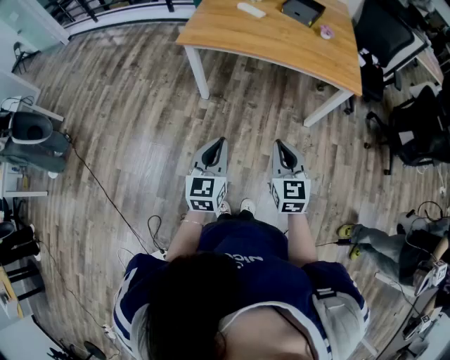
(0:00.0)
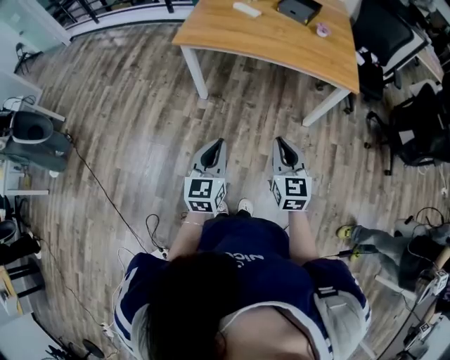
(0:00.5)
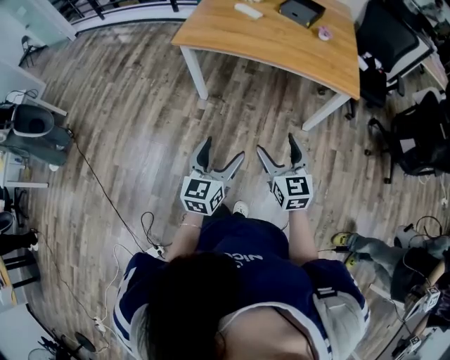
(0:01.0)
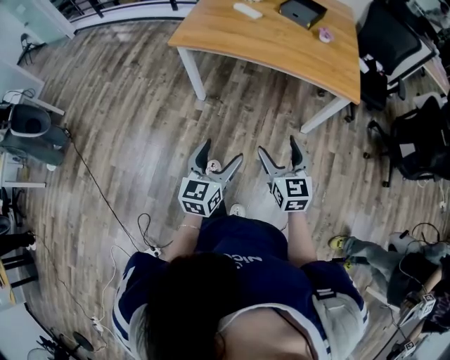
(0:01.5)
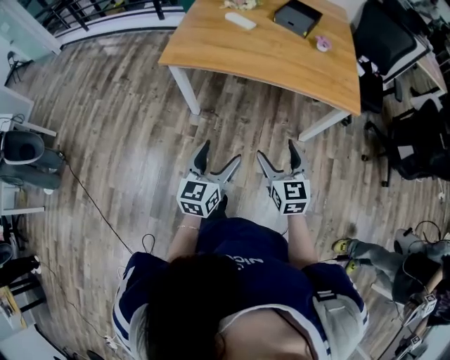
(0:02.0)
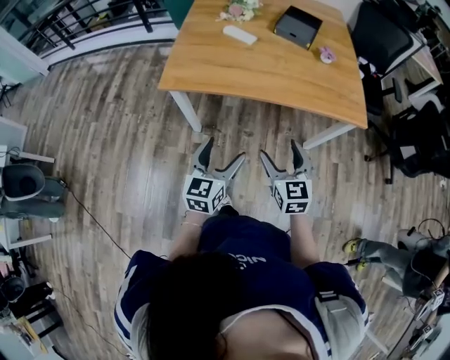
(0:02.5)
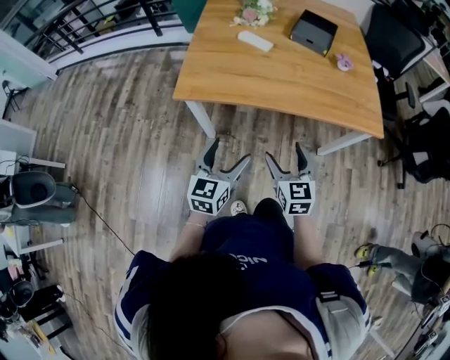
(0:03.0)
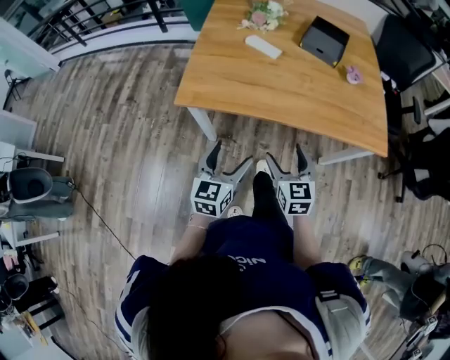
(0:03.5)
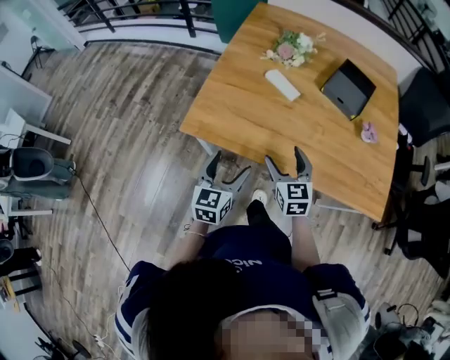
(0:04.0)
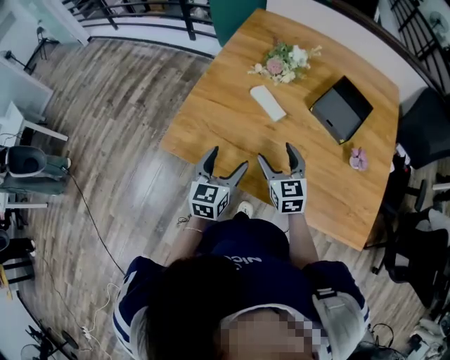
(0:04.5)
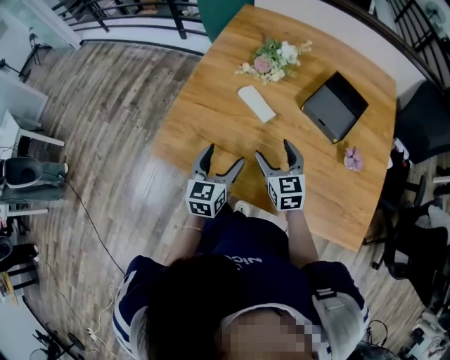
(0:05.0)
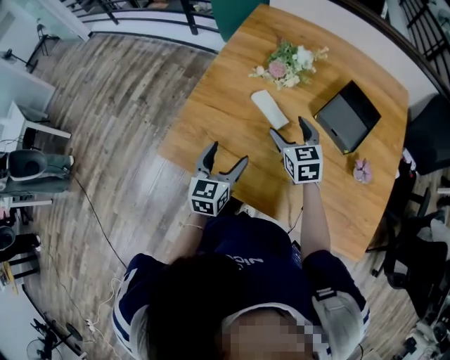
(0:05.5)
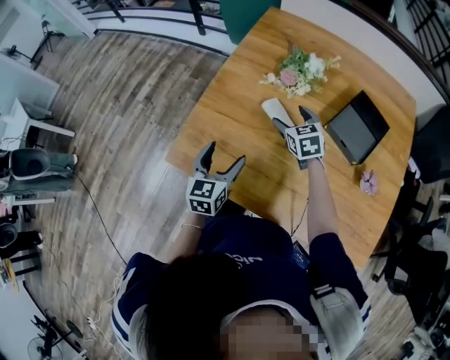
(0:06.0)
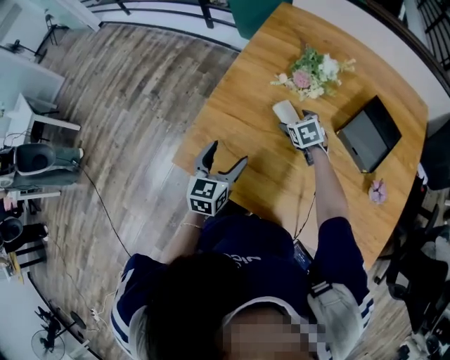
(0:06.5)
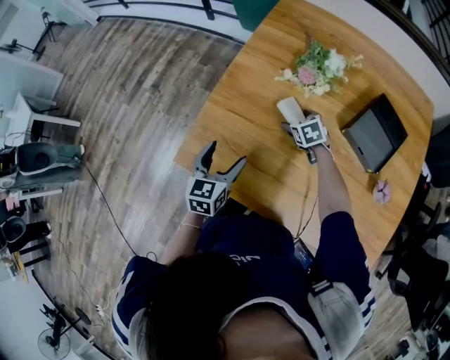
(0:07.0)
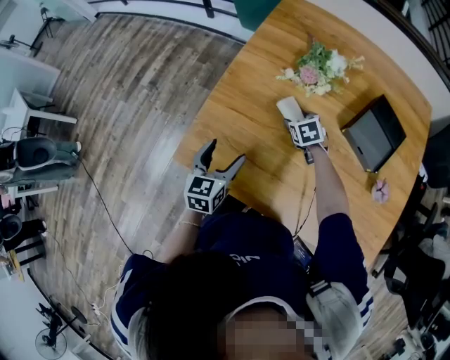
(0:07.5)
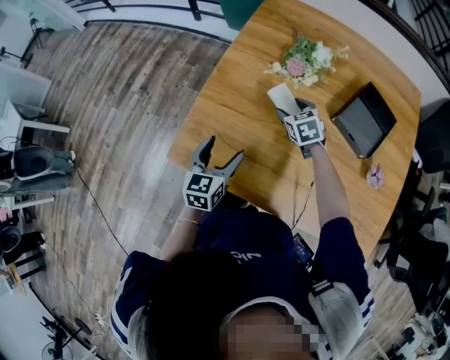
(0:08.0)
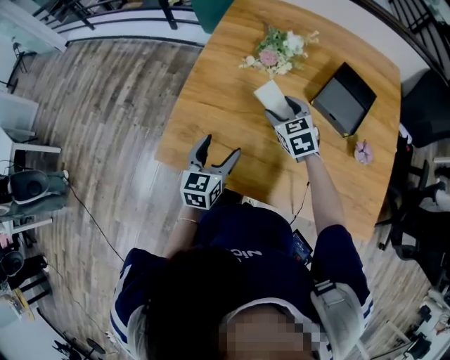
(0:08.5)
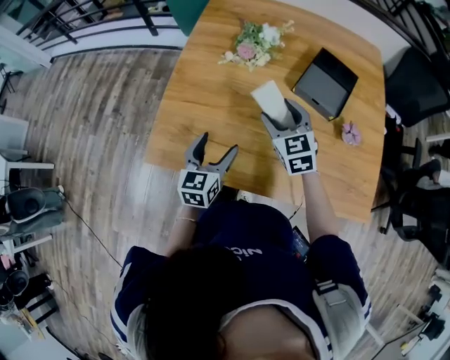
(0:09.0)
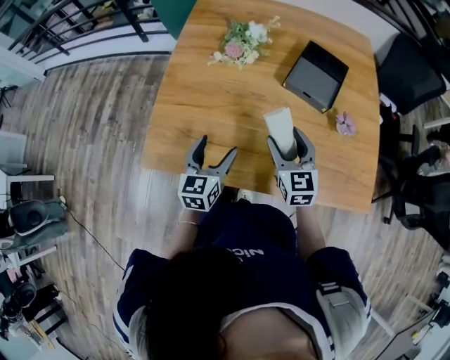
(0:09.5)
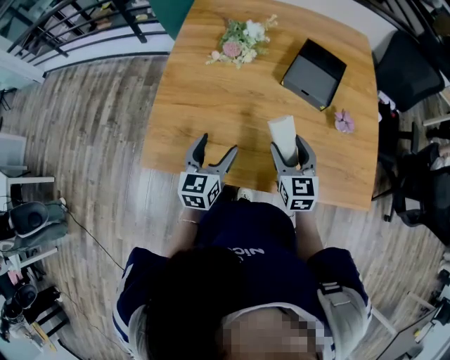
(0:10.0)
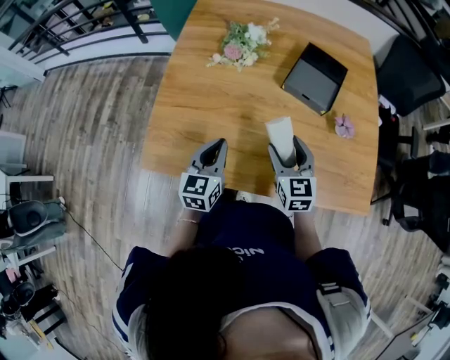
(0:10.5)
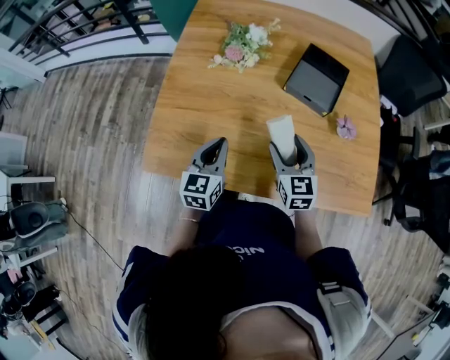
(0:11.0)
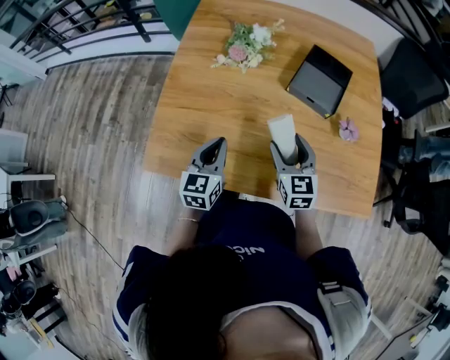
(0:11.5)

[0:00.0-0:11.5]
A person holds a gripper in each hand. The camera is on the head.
0:00.0 to 0:02.0: The right gripper moves forward, approximately 15 cm, and opens up. Meanwhile the left gripper moves forward and to the right, some 15 cm, and opens up.
0:02.0 to 0:04.0: The two grippers go about 35 cm forward.
0:04.0 to 0:06.0: The left gripper shifts about 20 cm forward. Meanwhile the right gripper travels forward by approximately 30 cm, and swivels some 20 degrees.
0:06.0 to 0:07.5: The right gripper goes some 10 cm downward, while the left gripper moves approximately 5 cm.
0:07.5 to 0:09.5: The left gripper goes roughly 15 cm to the right and backward. The right gripper travels backward, upward and to the right by roughly 30 cm, and tilts its fingers some 40 degrees upward.
0:09.5 to 0:11.5: The left gripper closes its fingers.

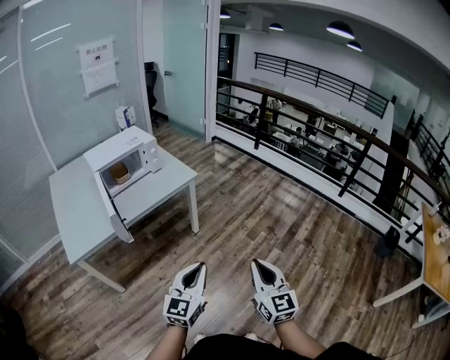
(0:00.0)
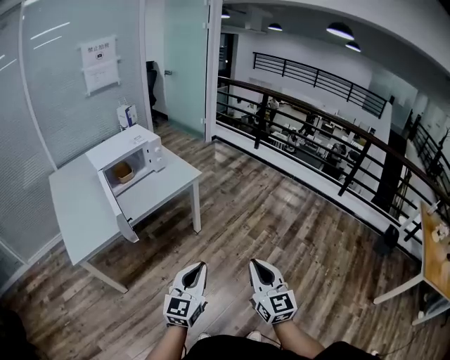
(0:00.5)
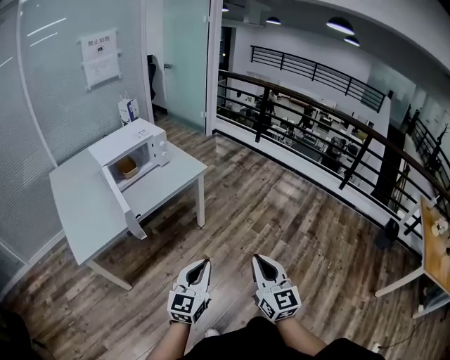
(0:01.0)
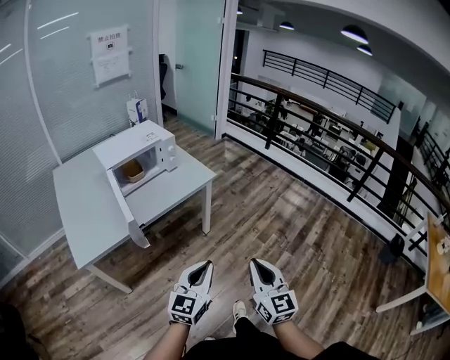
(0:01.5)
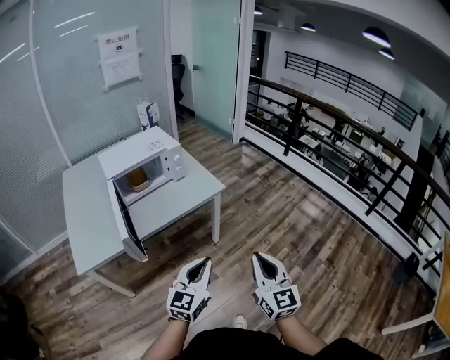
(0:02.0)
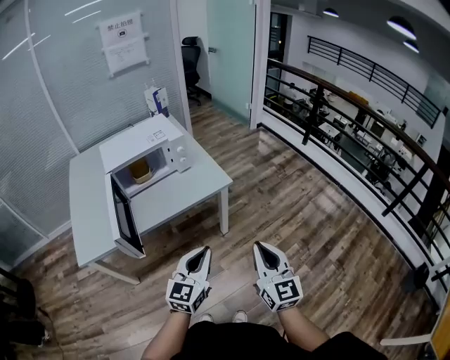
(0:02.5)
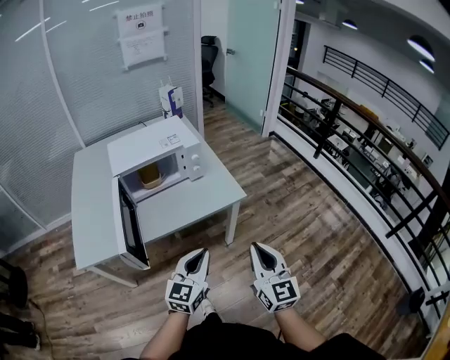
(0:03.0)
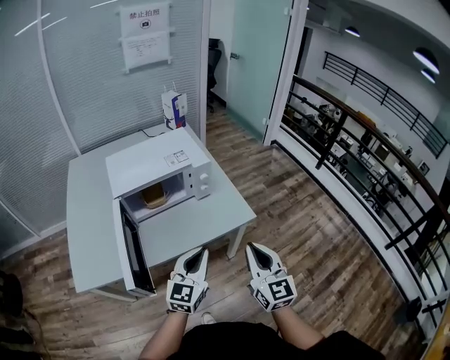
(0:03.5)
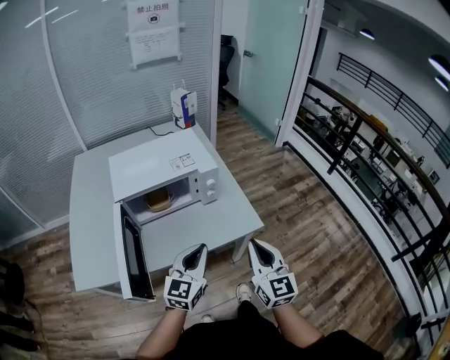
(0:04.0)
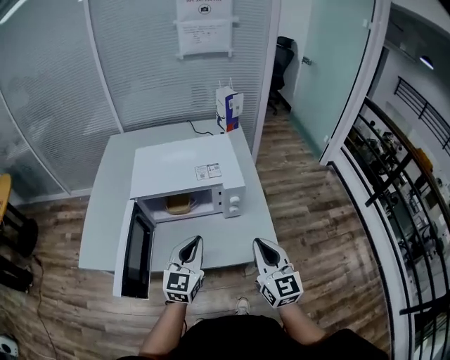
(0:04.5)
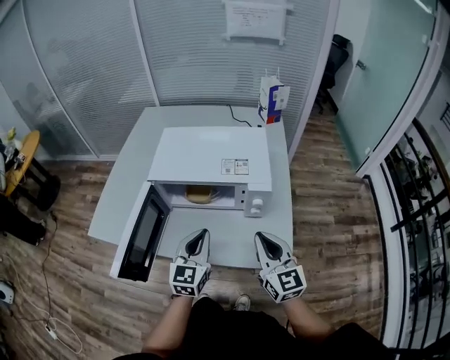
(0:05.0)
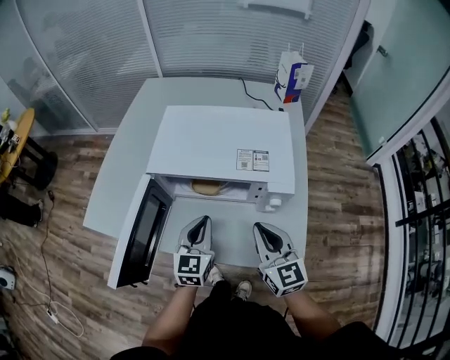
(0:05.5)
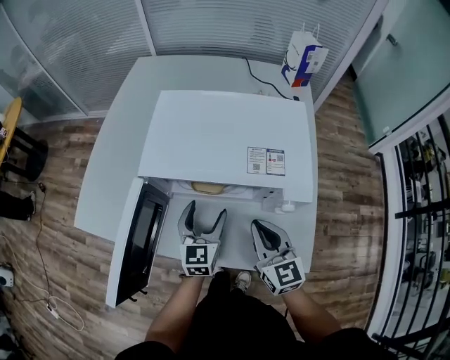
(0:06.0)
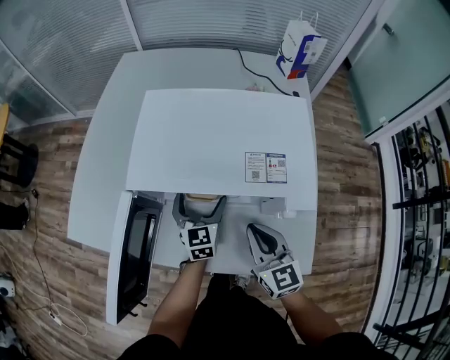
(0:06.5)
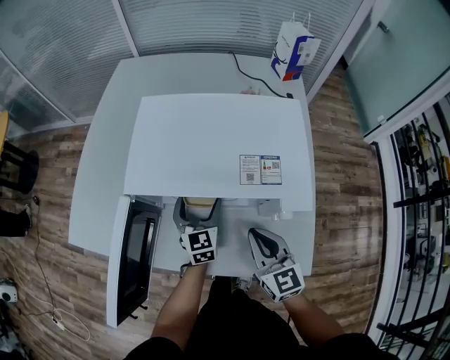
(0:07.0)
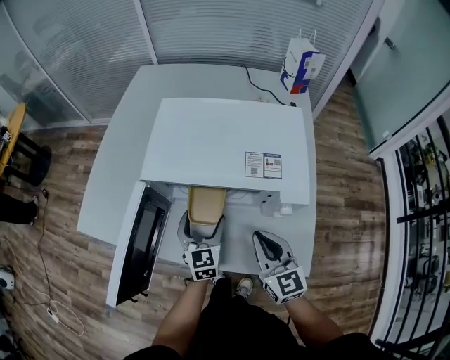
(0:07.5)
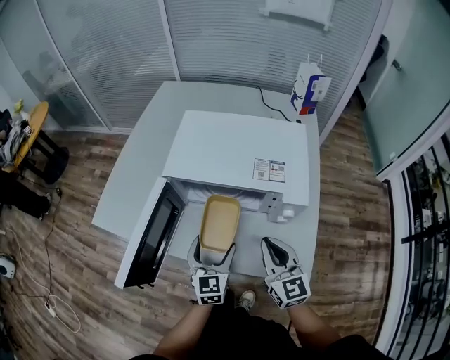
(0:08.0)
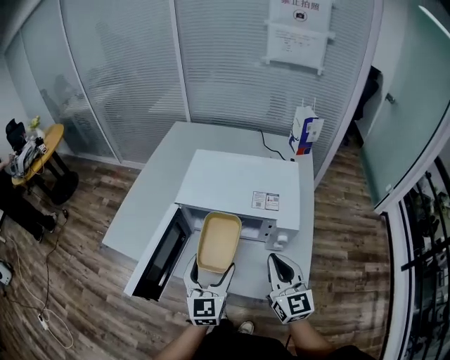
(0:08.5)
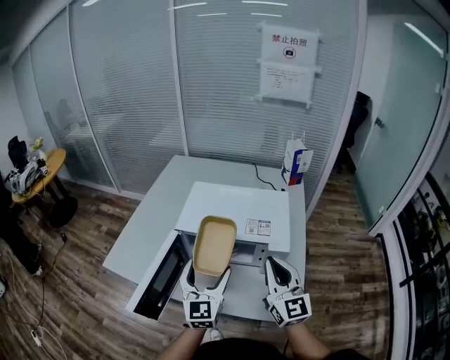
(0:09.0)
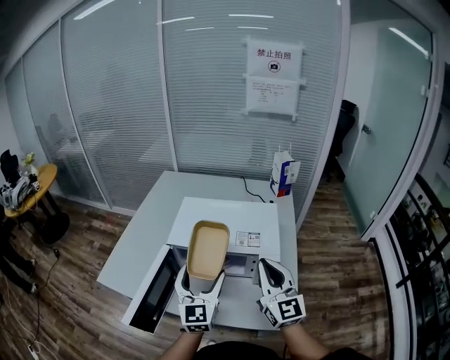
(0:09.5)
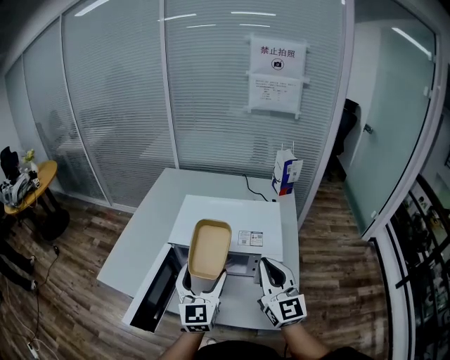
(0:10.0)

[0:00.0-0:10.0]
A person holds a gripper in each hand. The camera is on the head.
0:00.0 to 0:02.0: The two grippers go about 20 cm forward and to the left.
0:02.0 to 0:04.0: The grippers both shift forward by some 35 cm.
0:04.0 to 0:06.0: The left gripper moves approximately 30 cm, rotates roughly 50 degrees, and opens up; the right gripper changes place by about 30 cm, and swivels about 40 degrees.
0:06.0 to 0:08.0: The right gripper heads backward, covering roughly 5 cm. The left gripper travels backward by about 10 cm.
0:08.0 to 0:10.0: The two grippers go roughly 20 cm upward. The left gripper rotates some 20 degrees; the right gripper rotates some 20 degrees.

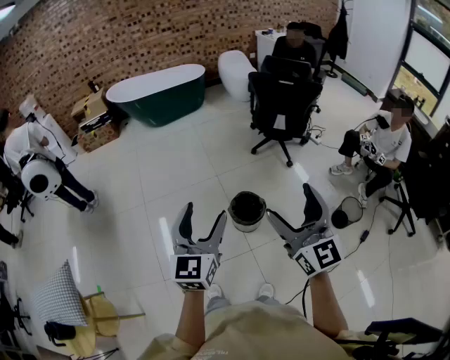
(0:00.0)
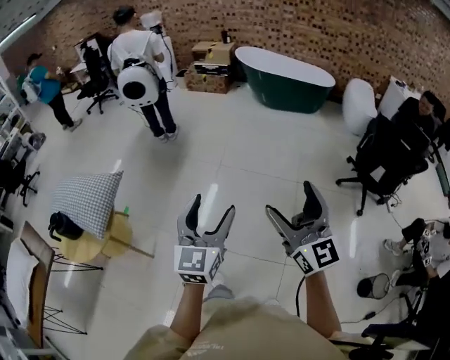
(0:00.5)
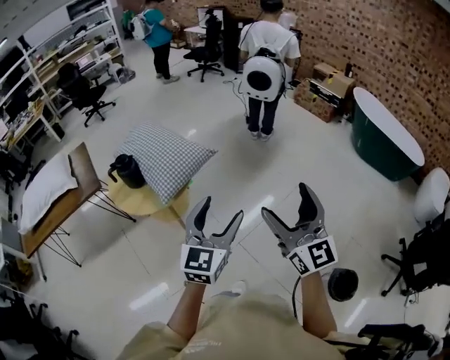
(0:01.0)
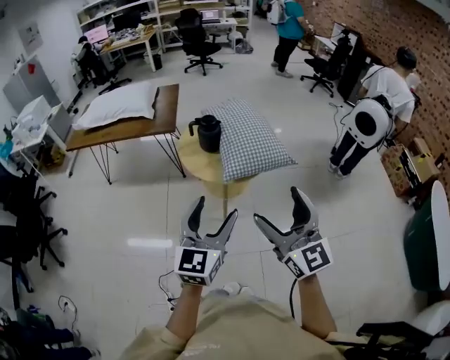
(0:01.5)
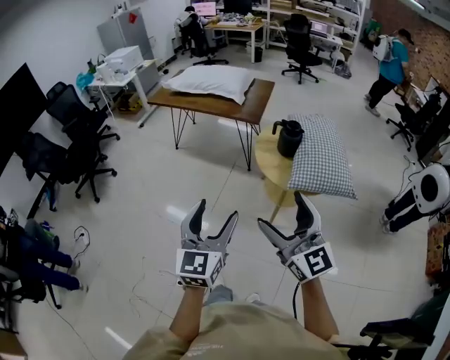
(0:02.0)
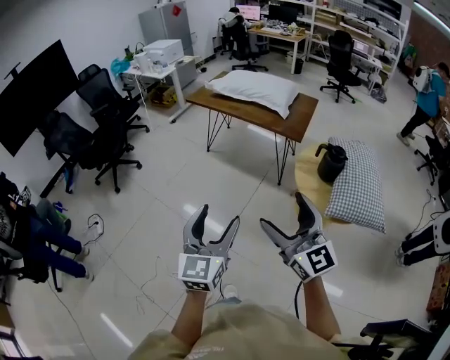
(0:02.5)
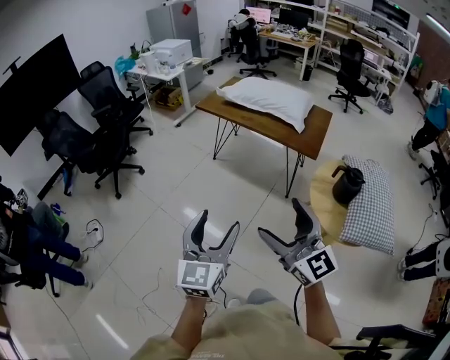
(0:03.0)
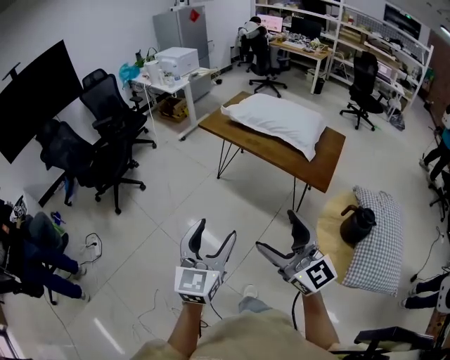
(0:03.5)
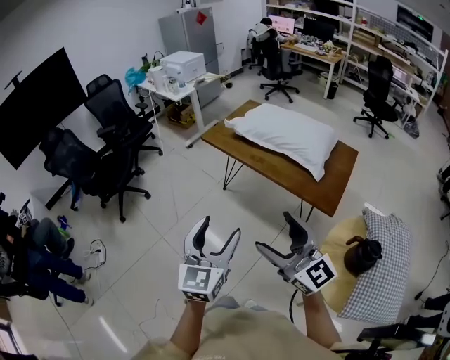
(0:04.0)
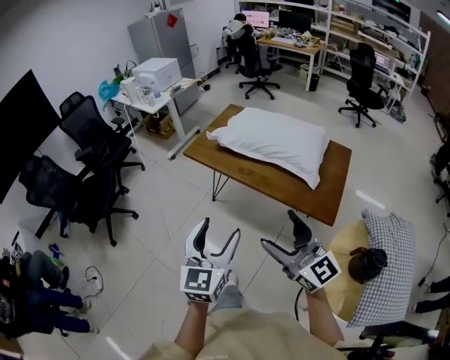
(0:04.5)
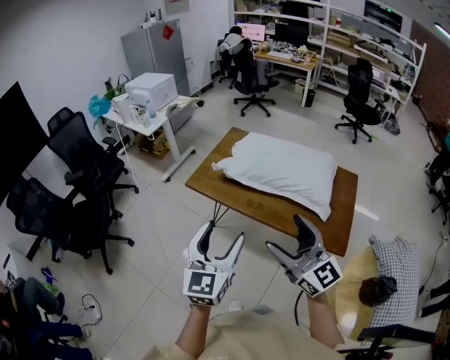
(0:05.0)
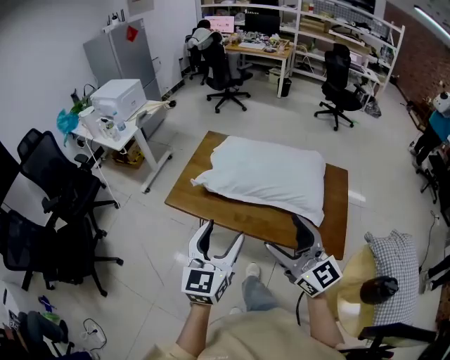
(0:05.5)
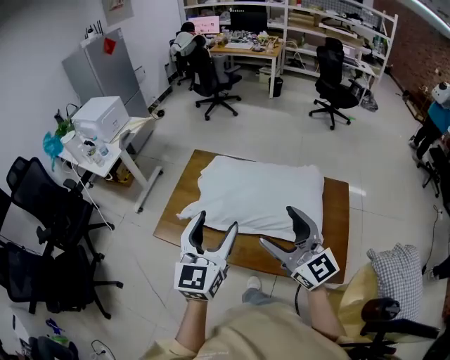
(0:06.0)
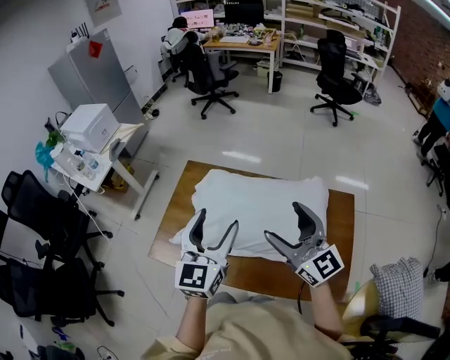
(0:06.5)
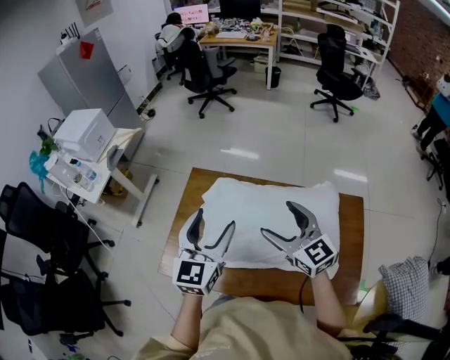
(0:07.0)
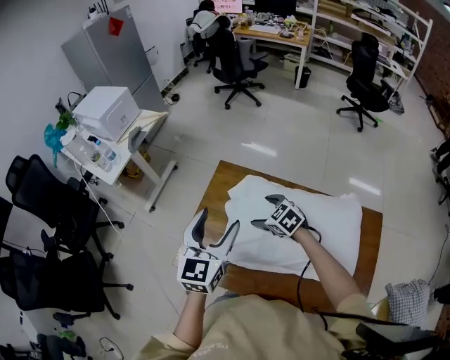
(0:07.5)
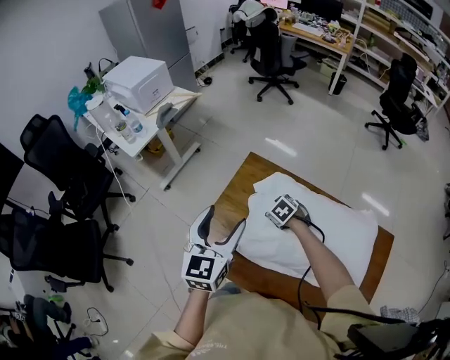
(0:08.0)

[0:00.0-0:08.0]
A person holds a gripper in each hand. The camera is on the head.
0:00.0 to 0:02.0: Both grippers are carried about 60 cm. The left gripper changes its angle by roughly 110 degrees. Meanwhile the right gripper swivels approximately 120 degrees.
0:02.0 to 0:04.0: The two grippers travel together, forward, about 50 cm. The right gripper changes its angle by roughly 30 degrees.
0:04.0 to 0:06.0: The pair of grippers is taken forward, approximately 70 cm. The right gripper turns by some 30 degrees. The left gripper changes its angle by about 20 degrees.
0:06.0 to 0:08.0: The left gripper heads forward, covering approximately 35 cm, while the right gripper heads forward and downward, covering some 70 cm, and tips its fingers downward by approximately 80 degrees.